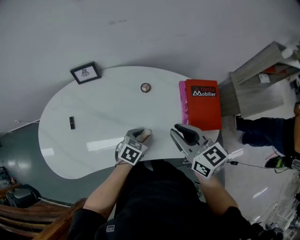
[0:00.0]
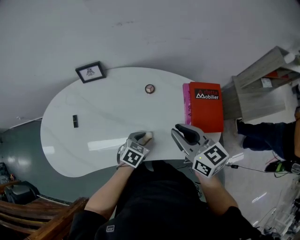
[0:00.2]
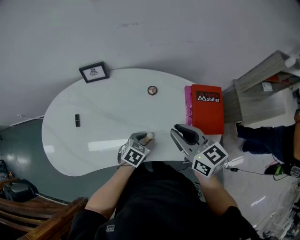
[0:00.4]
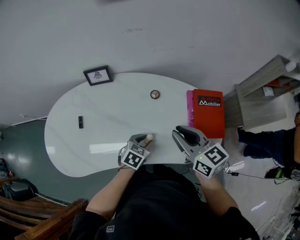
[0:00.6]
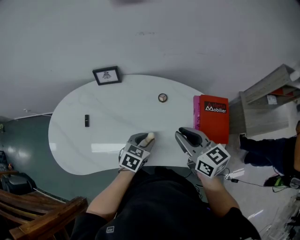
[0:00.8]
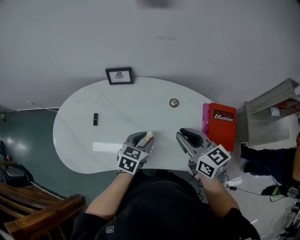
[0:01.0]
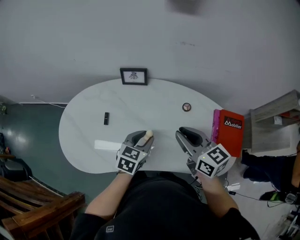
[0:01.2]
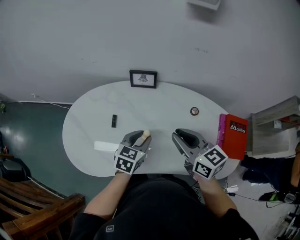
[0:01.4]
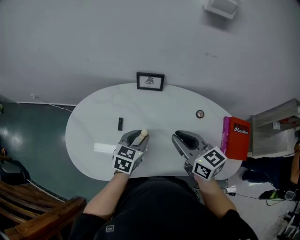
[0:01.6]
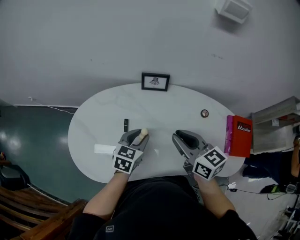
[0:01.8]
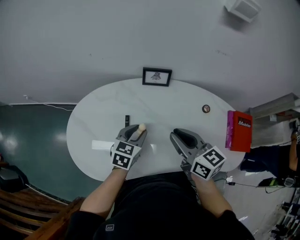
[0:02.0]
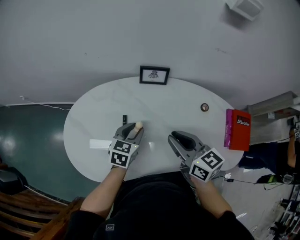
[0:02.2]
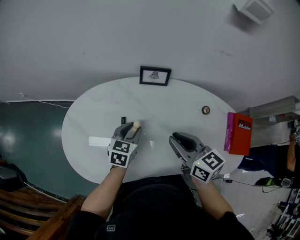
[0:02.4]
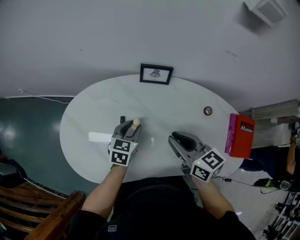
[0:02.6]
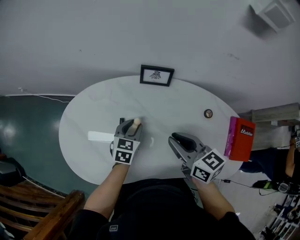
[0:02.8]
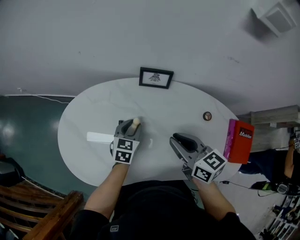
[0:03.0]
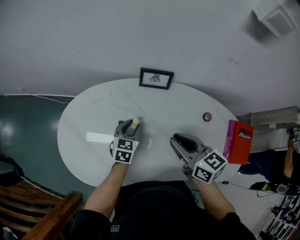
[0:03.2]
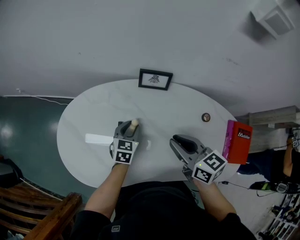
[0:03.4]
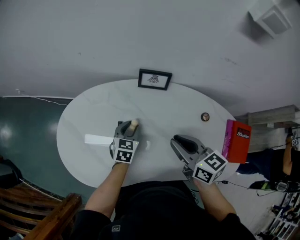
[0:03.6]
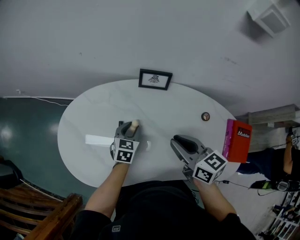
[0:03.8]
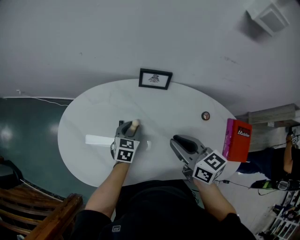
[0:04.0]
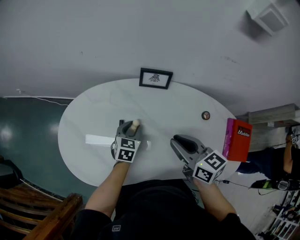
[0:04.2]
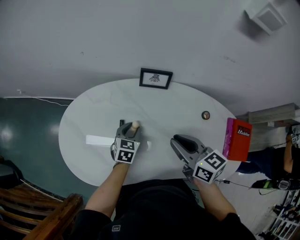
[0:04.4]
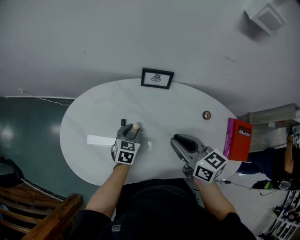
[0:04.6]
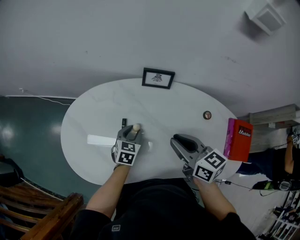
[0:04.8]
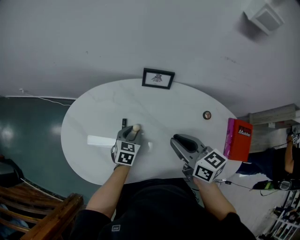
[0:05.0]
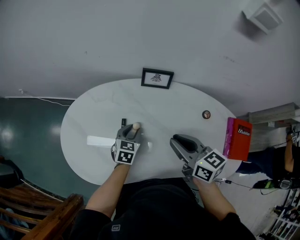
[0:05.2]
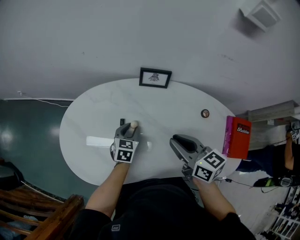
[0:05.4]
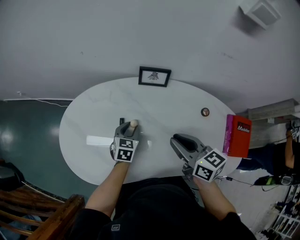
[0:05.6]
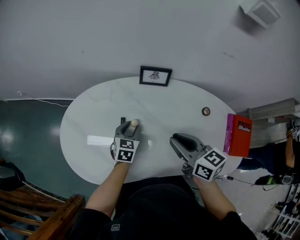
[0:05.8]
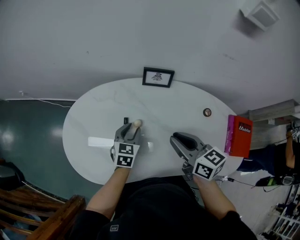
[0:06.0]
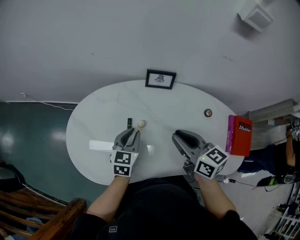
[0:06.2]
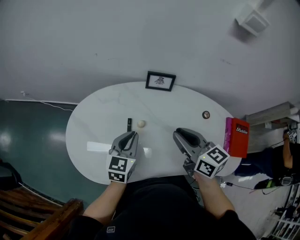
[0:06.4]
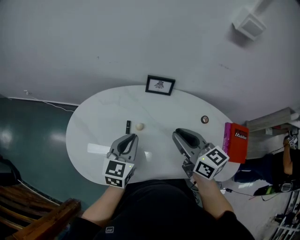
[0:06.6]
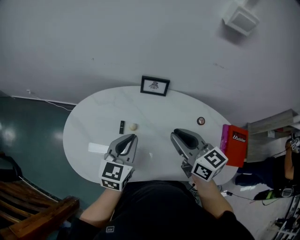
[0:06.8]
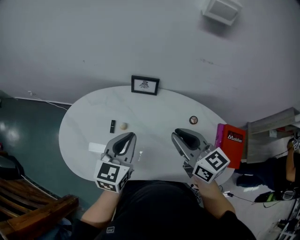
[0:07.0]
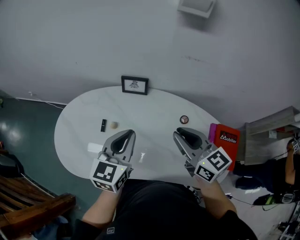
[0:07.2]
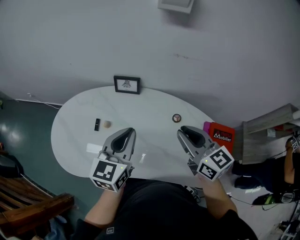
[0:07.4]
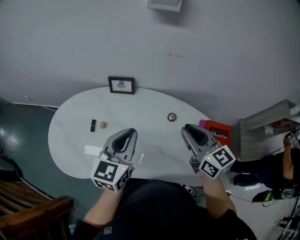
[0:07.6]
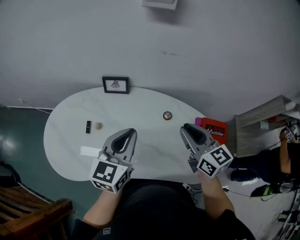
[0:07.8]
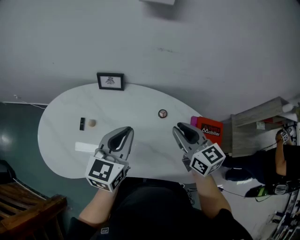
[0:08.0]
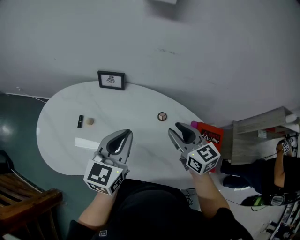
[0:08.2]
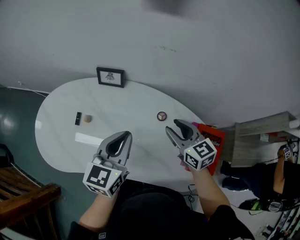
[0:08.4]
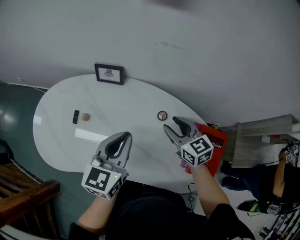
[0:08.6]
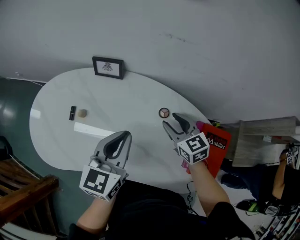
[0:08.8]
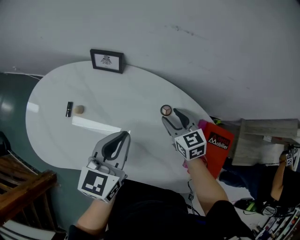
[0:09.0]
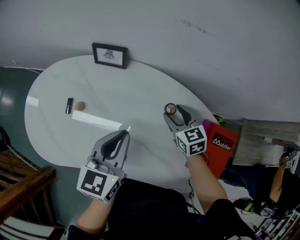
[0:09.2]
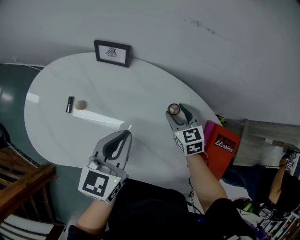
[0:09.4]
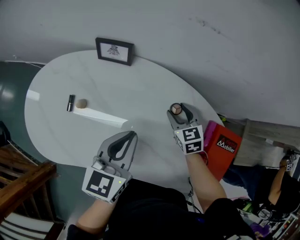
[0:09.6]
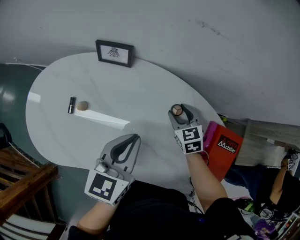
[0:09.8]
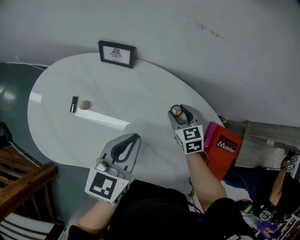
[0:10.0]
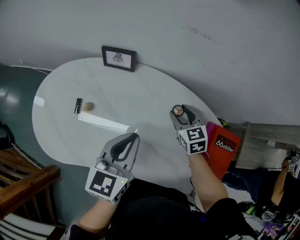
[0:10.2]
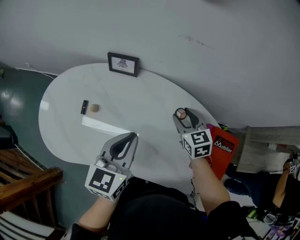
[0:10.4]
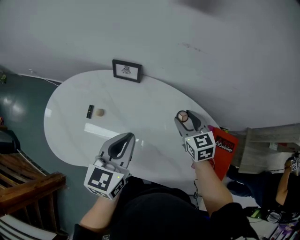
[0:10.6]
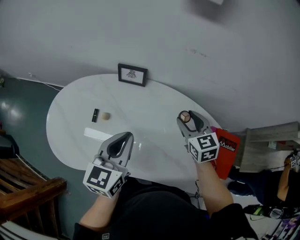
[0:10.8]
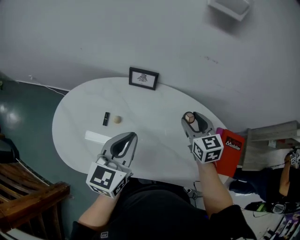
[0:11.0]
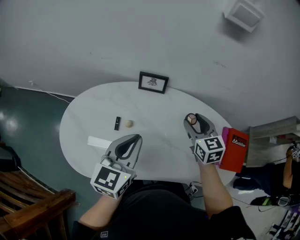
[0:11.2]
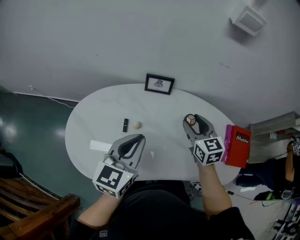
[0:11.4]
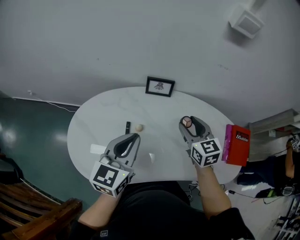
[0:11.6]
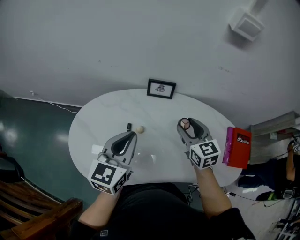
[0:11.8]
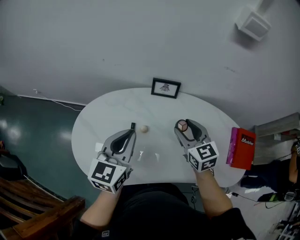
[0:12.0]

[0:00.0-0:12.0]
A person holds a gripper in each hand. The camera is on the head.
0:00.0 to 0:01.6: The right gripper moves to the left, approximately 25 cm. Meanwhile the left gripper goes some 30 cm to the left and upward, and rotates roughly 30 degrees.
0:01.6 to 0:03.0: The left gripper heads forward, downward and to the left, covering approximately 15 cm. Meanwhile the right gripper heads forward, covering approximately 5 cm.
0:03.0 to 0:06.0: The grippers make only small movements.
0:06.0 to 0:07.6: The right gripper shifts approximately 25 cm to the right; the left gripper heads upward, to the right and backward, covering roughly 35 cm, rotates some 20 degrees, and closes its fingers.
0:07.6 to 0:09.0: The right gripper moves downward and forward, approximately 25 cm, turns by about 20 degrees, and opens, while the left gripper shifts some 10 cm downward.
0:09.0 to 0:10.4: The right gripper reaches about 5 cm downward, then returns.
0:10.4 to 0:12.0: The right gripper shifts roughly 25 cm to the left and upward, while the left gripper heads to the left, covering roughly 25 cm.

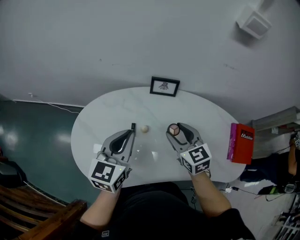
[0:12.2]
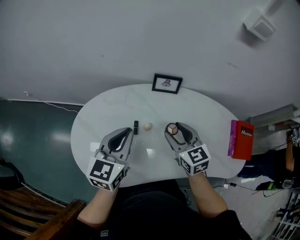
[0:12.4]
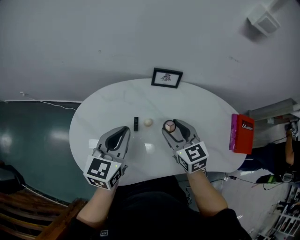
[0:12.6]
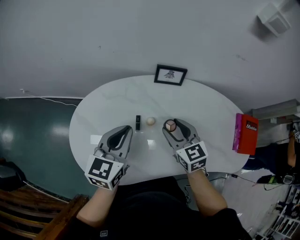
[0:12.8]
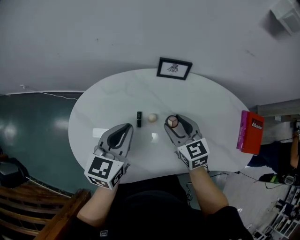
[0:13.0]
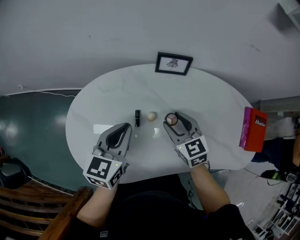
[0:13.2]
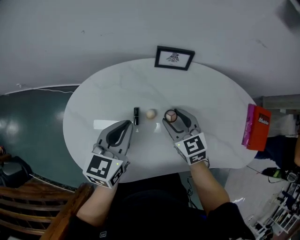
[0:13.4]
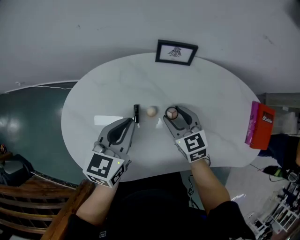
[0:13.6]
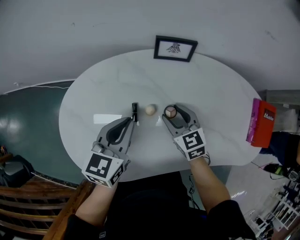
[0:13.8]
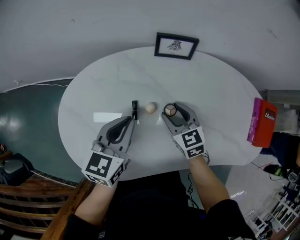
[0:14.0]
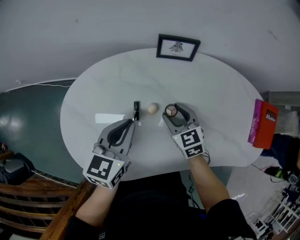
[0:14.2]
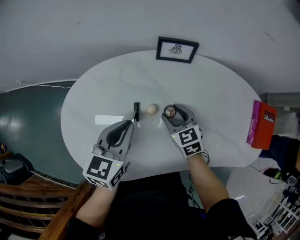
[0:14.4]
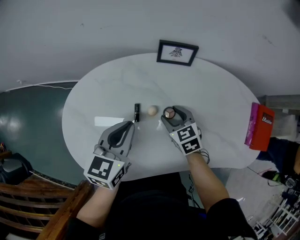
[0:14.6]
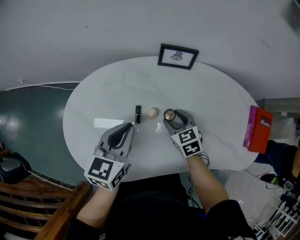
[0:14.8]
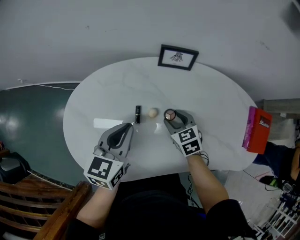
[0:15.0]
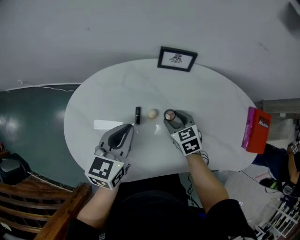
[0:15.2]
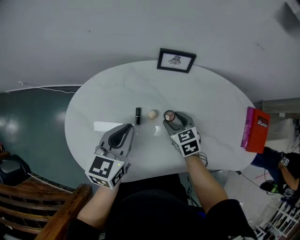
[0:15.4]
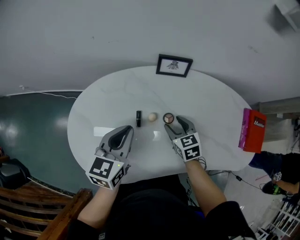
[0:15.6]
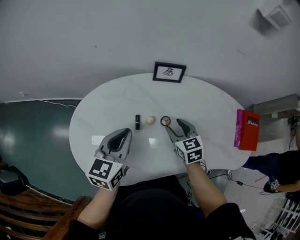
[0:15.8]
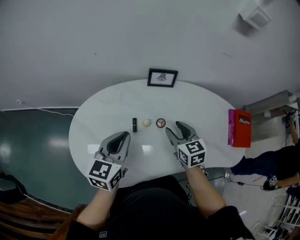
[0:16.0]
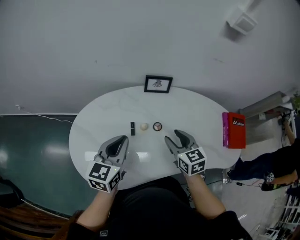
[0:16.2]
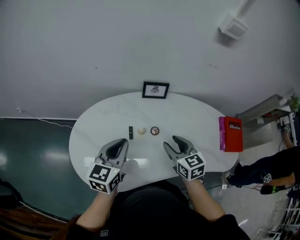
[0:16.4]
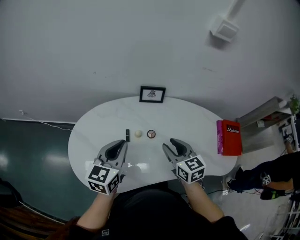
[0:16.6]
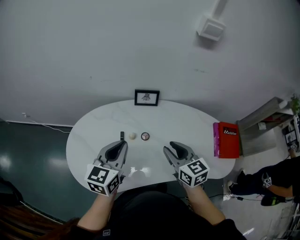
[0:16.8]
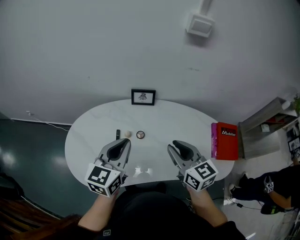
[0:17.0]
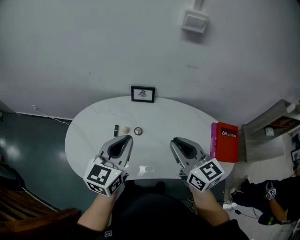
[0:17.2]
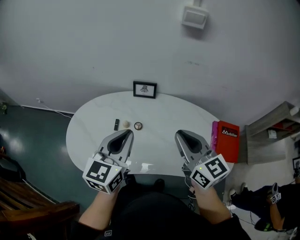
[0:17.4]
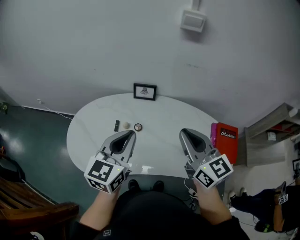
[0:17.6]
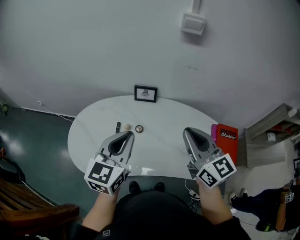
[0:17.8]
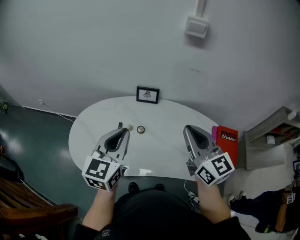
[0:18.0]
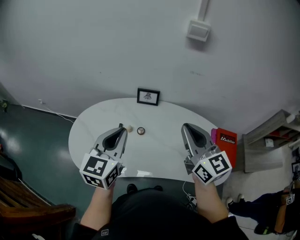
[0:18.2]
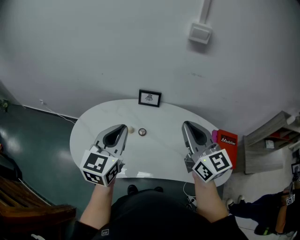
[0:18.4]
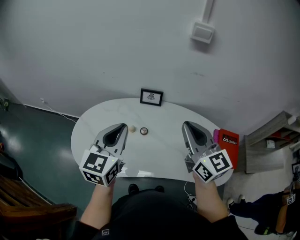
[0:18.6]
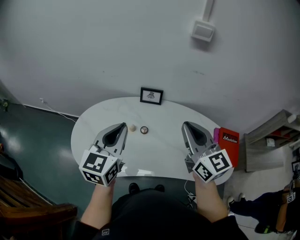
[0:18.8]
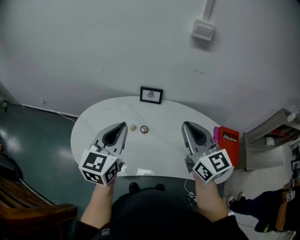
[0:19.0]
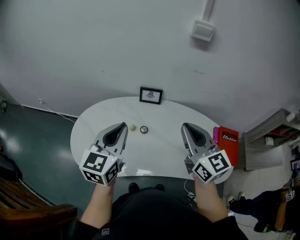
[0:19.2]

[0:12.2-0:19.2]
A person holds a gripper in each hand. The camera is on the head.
0:12.2 to 0:13.6: Both grippers move downward, roughly 15 cm.
0:13.6 to 0:15.0: The right gripper ends up some 5 cm from where it was.
0:15.0 to 0:16.4: The left gripper heads upward, covering approximately 10 cm; the right gripper is displaced upward and backward by some 20 cm, and swivels roughly 20 degrees.
0:16.4 to 0:17.8: The left gripper shifts approximately 25 cm to the right, upward and backward. The right gripper is displaced upward and to the right by some 25 cm, tilts its fingers some 30 degrees upward, and closes its fingers.
0:17.8 to 0:19.2: The left gripper moves to the left, about 5 cm.

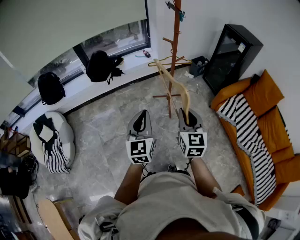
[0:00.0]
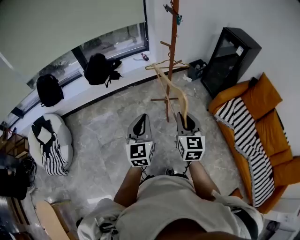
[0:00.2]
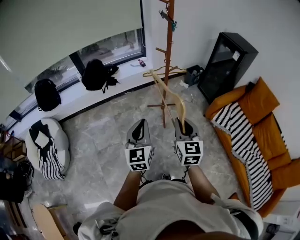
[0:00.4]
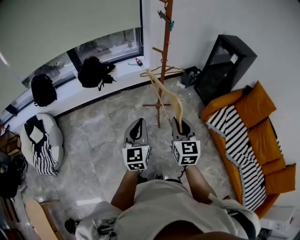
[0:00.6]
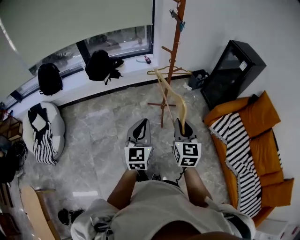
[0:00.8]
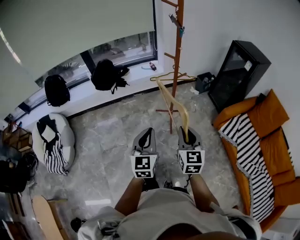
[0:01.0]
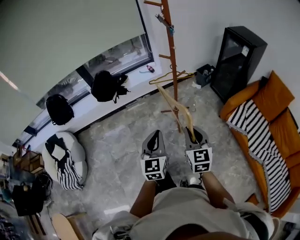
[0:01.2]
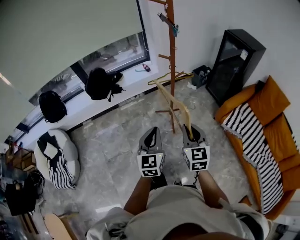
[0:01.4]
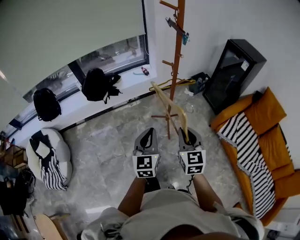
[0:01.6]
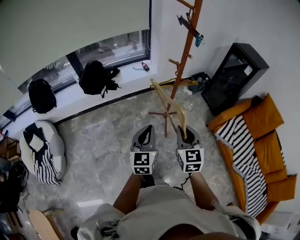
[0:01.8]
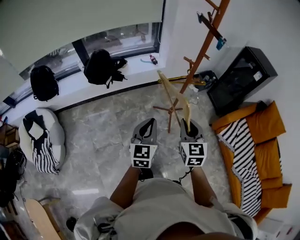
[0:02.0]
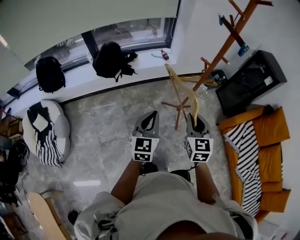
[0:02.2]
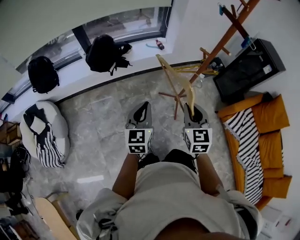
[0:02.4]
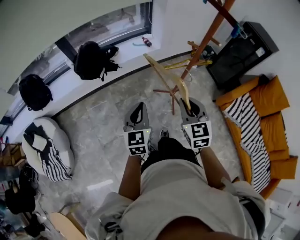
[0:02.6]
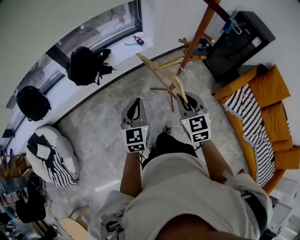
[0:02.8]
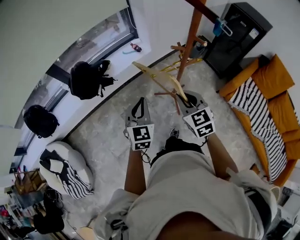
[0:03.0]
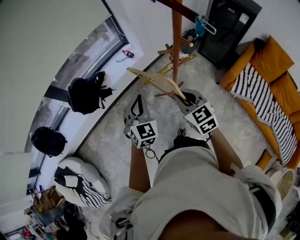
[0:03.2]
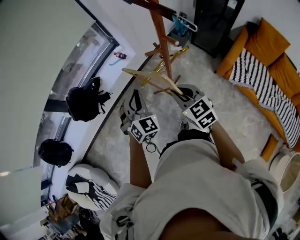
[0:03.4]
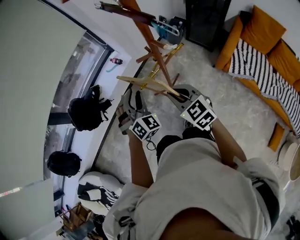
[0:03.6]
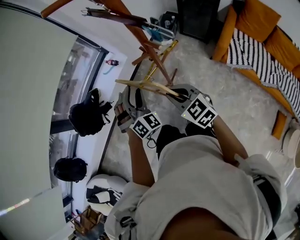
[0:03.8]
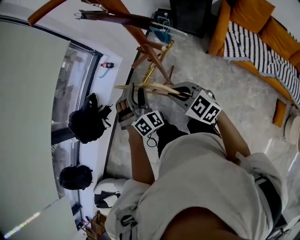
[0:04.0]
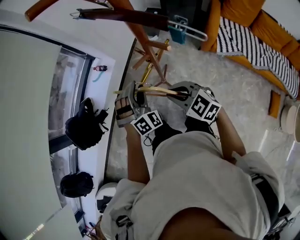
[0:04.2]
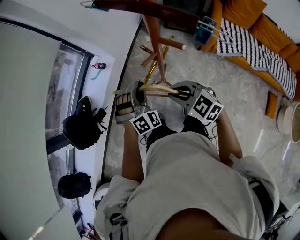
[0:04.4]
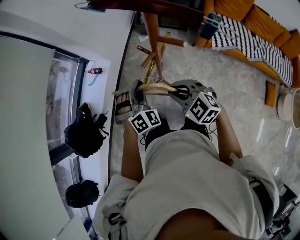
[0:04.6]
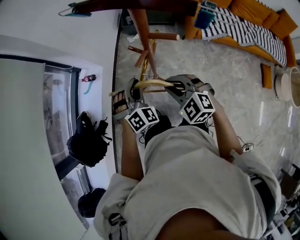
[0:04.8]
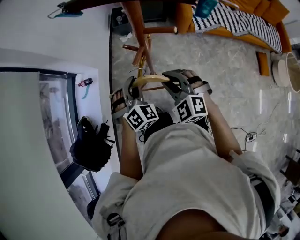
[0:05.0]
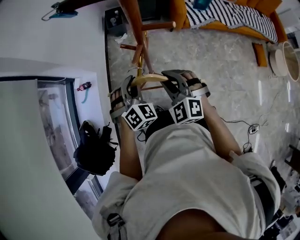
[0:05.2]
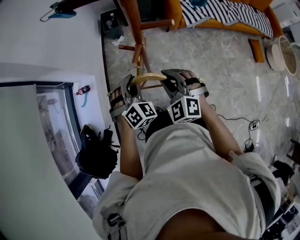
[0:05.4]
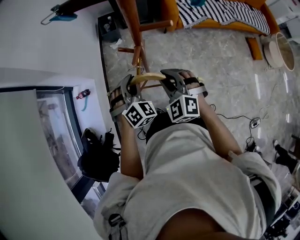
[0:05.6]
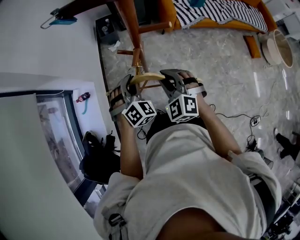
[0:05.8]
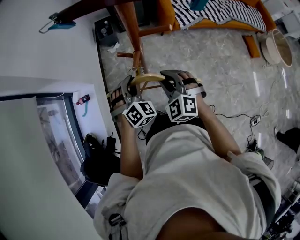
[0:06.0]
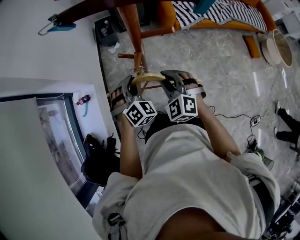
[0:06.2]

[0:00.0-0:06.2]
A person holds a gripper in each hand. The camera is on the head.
0:00.0 to 0:01.6: Both grippers travel together forward, roughly 10 cm.
0:01.6 to 0:03.2: The two grippers go roughly 30 cm forward. The left gripper rotates roughly 30 degrees.
0:03.2 to 0:04.6: The left gripper goes approximately 20 cm forward, to the right and downward, twists about 40 degrees clockwise, seen from behind, and opens, then closes once more, while the right gripper is displaced forward and downward by some 10 cm.
0:04.6 to 0:06.2: The right gripper changes place by approximately 5 cm, and turns by roughly 50 degrees. The left gripper moves approximately 5 cm.
